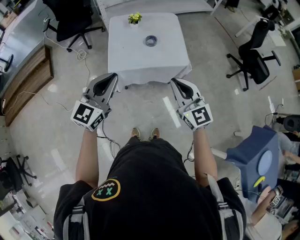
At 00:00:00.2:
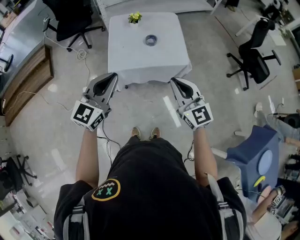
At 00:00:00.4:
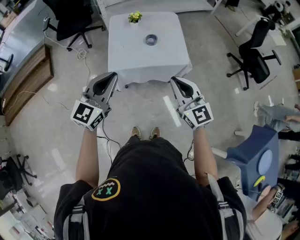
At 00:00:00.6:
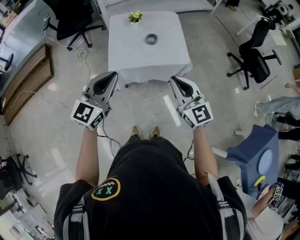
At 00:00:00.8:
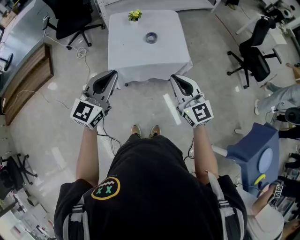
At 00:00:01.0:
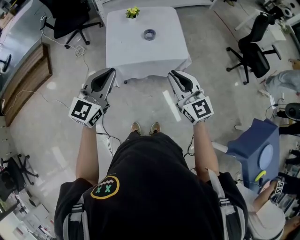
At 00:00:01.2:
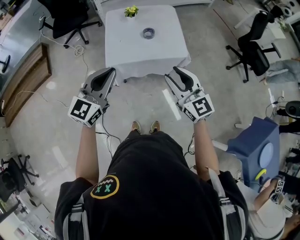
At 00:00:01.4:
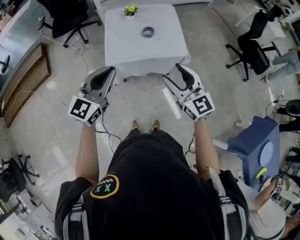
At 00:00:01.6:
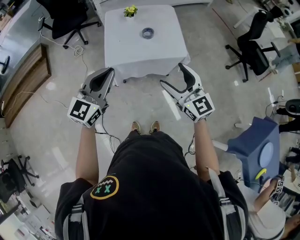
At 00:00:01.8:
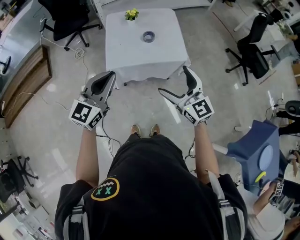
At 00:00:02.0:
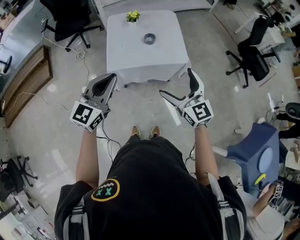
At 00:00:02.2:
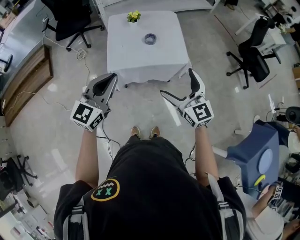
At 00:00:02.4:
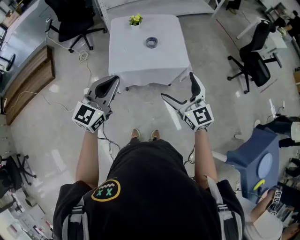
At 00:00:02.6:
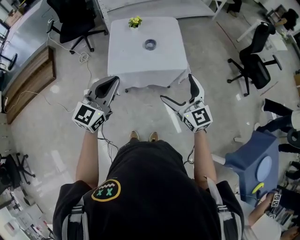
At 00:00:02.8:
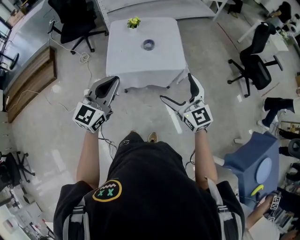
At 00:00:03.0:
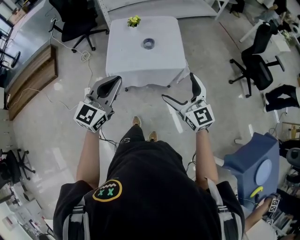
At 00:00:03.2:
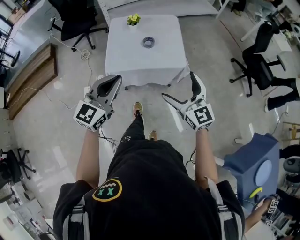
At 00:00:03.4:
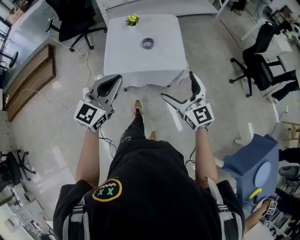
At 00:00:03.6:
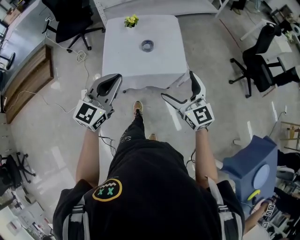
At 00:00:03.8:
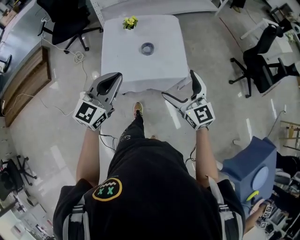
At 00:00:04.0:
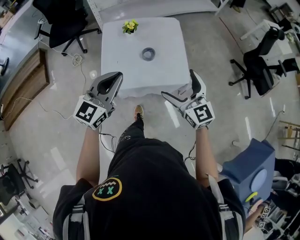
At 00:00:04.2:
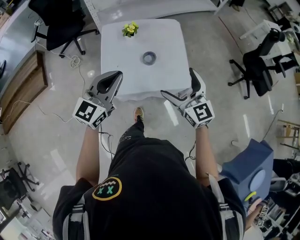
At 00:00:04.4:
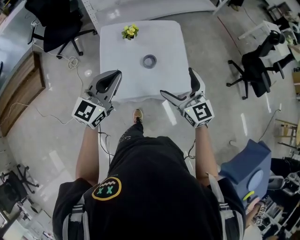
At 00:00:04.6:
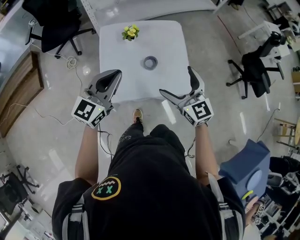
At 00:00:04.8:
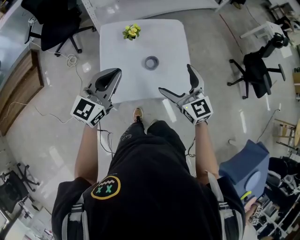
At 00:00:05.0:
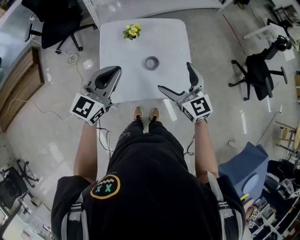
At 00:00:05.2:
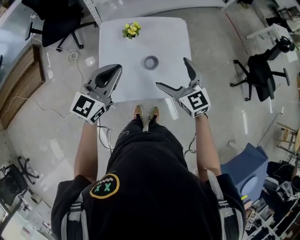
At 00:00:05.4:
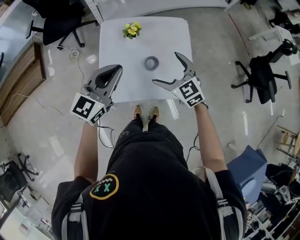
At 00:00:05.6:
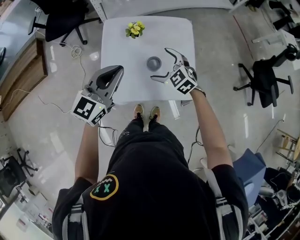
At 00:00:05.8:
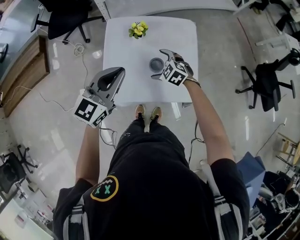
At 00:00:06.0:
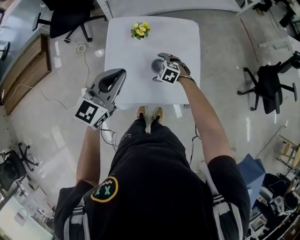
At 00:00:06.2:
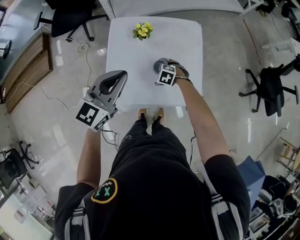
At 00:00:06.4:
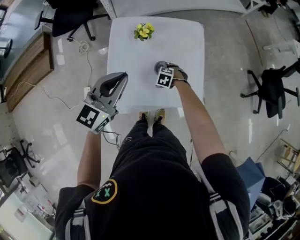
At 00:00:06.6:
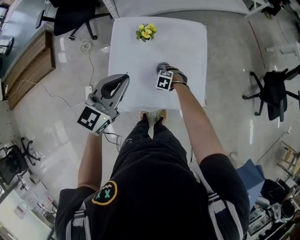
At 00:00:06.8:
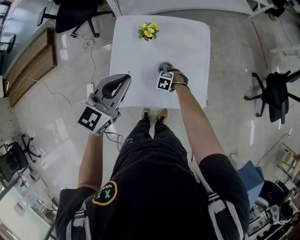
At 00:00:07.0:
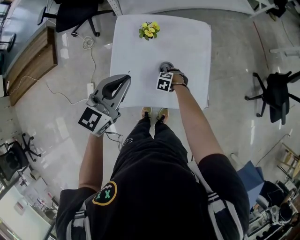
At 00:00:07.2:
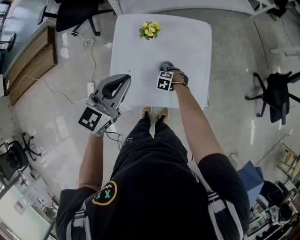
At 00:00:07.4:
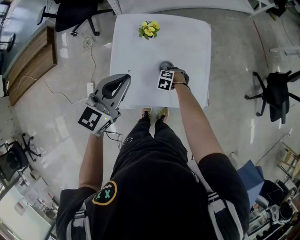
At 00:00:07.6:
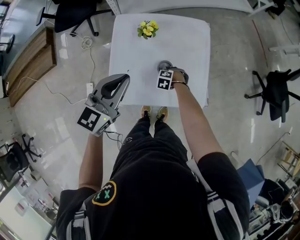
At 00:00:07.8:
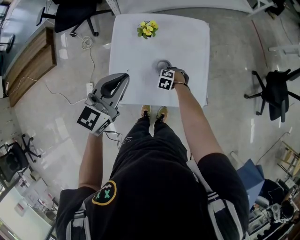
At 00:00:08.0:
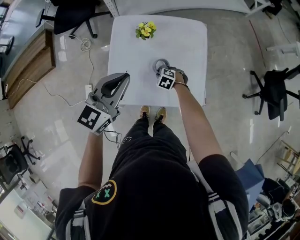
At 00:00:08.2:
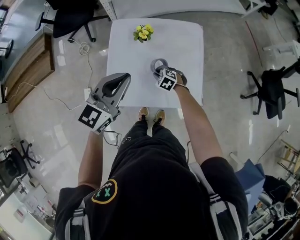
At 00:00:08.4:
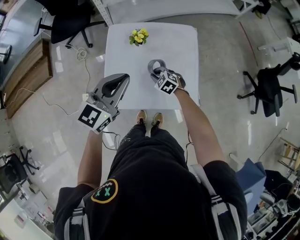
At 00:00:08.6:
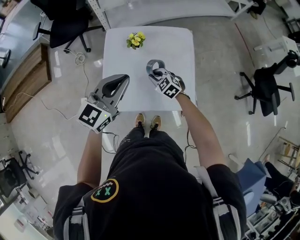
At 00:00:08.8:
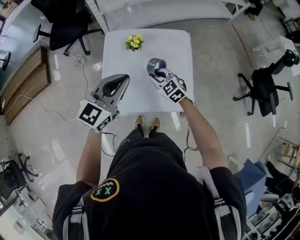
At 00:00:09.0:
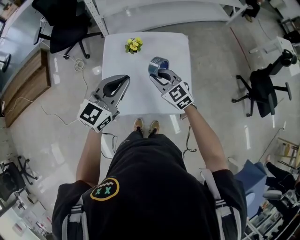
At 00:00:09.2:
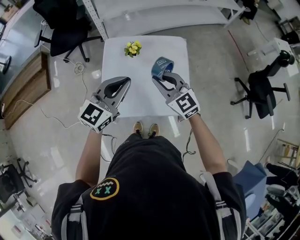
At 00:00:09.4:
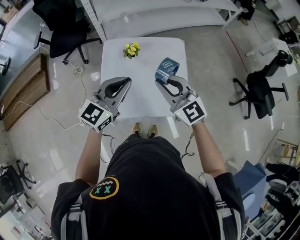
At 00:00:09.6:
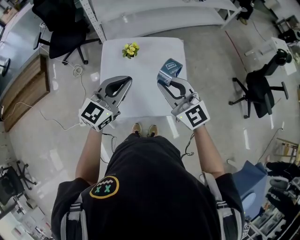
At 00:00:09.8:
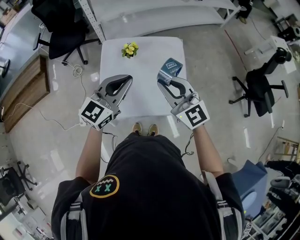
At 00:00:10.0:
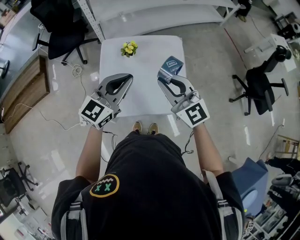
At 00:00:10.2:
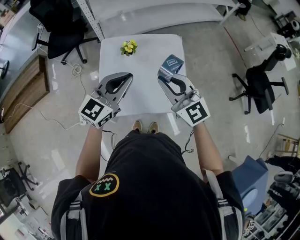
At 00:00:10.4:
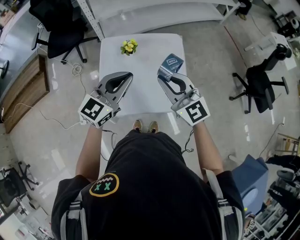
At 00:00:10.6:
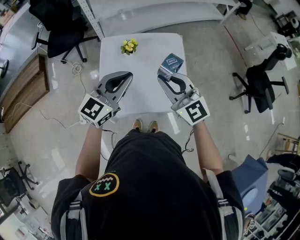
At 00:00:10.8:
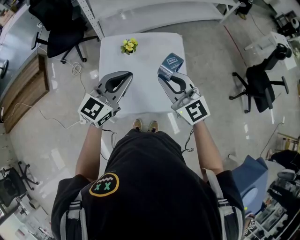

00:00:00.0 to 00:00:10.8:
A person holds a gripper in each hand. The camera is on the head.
00:00:00.0 to 00:00:01.6: The right gripper opens.
00:00:01.6 to 00:00:03.0: The two grippers go roughly 10 cm to the right.
00:00:03.0 to 00:00:04.6: Both grippers travel together forward, about 30 cm.
00:00:04.6 to 00:00:06.2: The right gripper travels downward by some 35 cm, and angles its fingers downward, by roughly 60 degrees, while the left gripper shifts by about 10 cm.
00:00:06.2 to 00:00:07.8: The right gripper shifts some 5 cm downward, and closes its fingers.
00:00:07.8 to 00:00:09.2: The right gripper shifts approximately 40 cm upward, and angles its fingers upward, by some 60 degrees. Meanwhile the left gripper shifts by about 5 cm.
00:00:09.2 to 00:00:10.8: The right gripper heads upward, covering approximately 10 cm.

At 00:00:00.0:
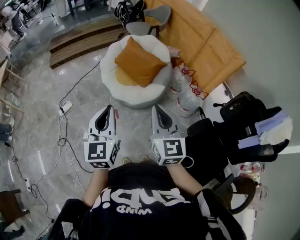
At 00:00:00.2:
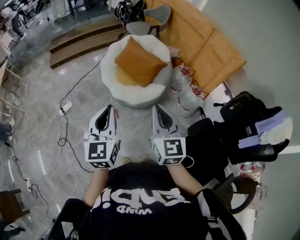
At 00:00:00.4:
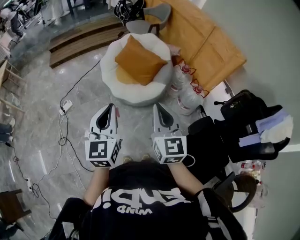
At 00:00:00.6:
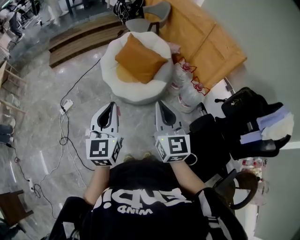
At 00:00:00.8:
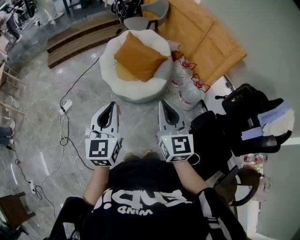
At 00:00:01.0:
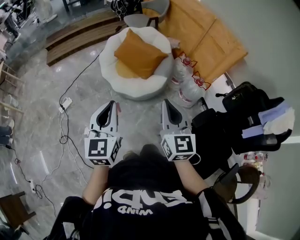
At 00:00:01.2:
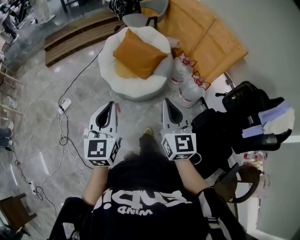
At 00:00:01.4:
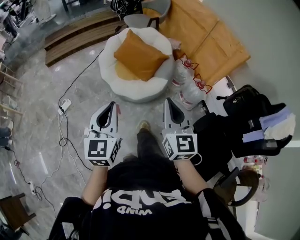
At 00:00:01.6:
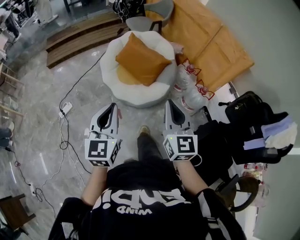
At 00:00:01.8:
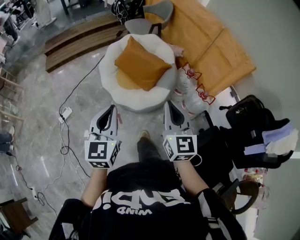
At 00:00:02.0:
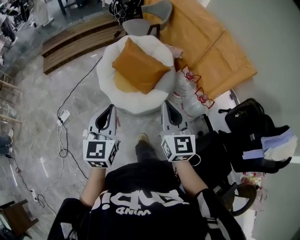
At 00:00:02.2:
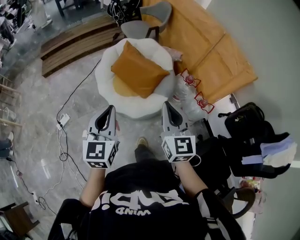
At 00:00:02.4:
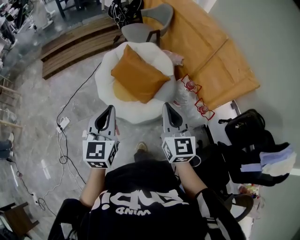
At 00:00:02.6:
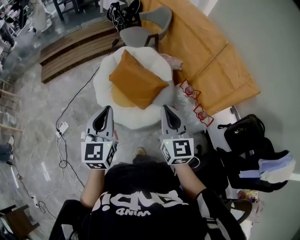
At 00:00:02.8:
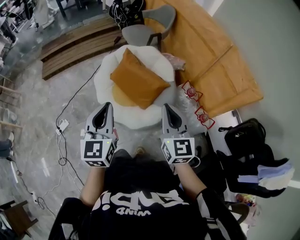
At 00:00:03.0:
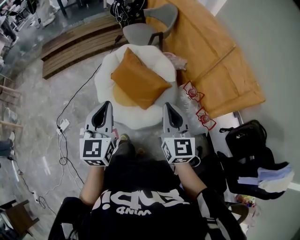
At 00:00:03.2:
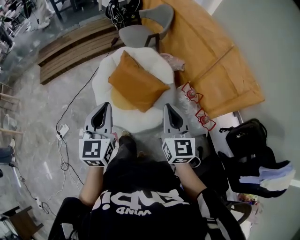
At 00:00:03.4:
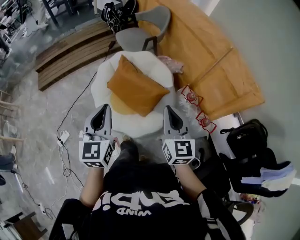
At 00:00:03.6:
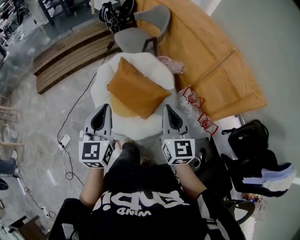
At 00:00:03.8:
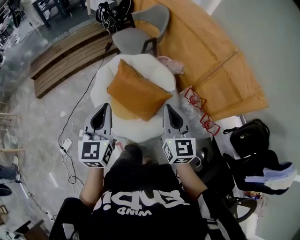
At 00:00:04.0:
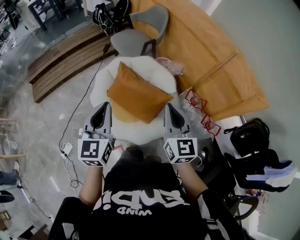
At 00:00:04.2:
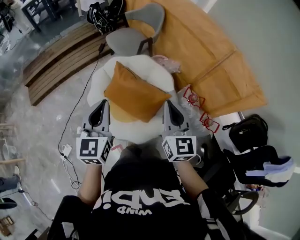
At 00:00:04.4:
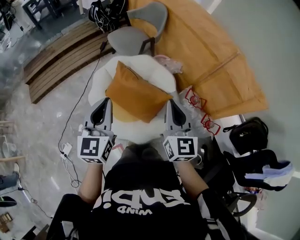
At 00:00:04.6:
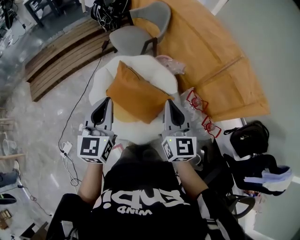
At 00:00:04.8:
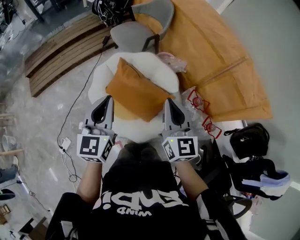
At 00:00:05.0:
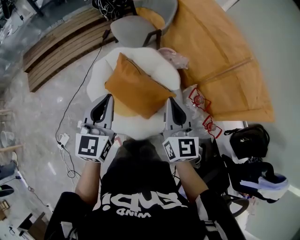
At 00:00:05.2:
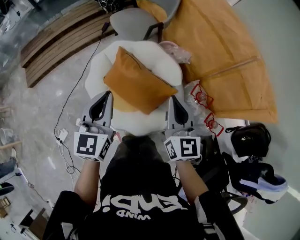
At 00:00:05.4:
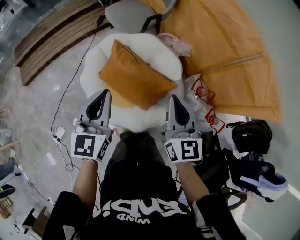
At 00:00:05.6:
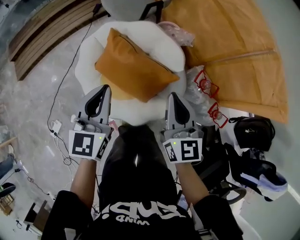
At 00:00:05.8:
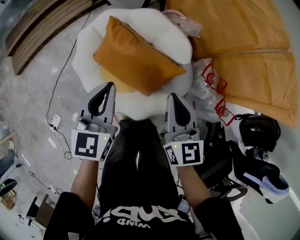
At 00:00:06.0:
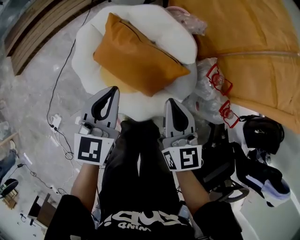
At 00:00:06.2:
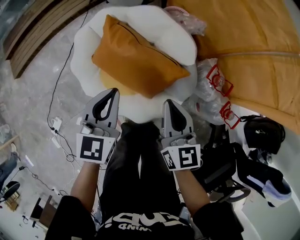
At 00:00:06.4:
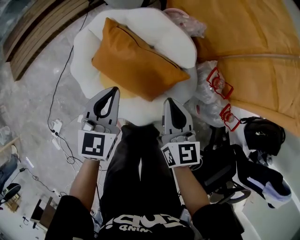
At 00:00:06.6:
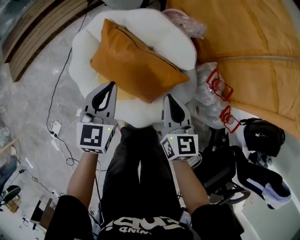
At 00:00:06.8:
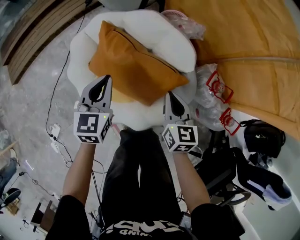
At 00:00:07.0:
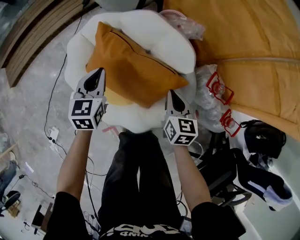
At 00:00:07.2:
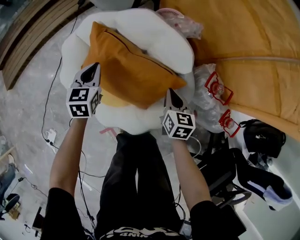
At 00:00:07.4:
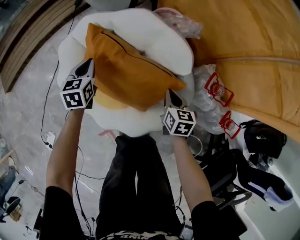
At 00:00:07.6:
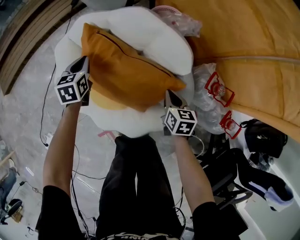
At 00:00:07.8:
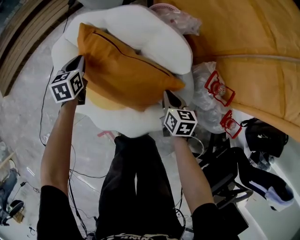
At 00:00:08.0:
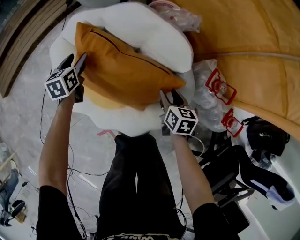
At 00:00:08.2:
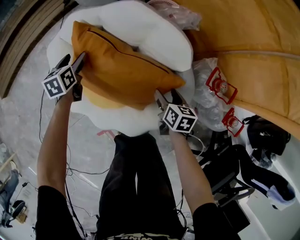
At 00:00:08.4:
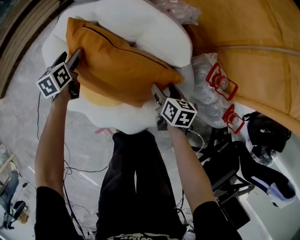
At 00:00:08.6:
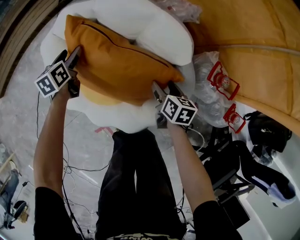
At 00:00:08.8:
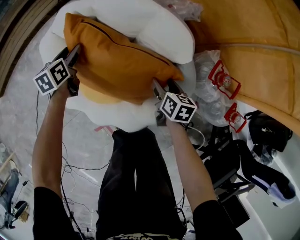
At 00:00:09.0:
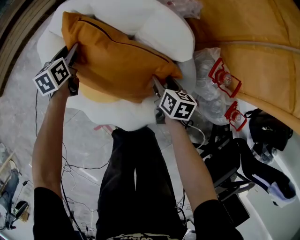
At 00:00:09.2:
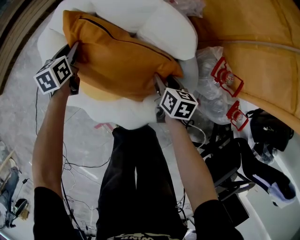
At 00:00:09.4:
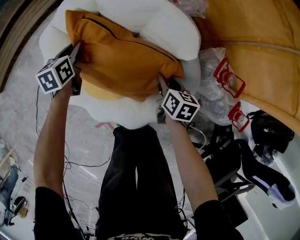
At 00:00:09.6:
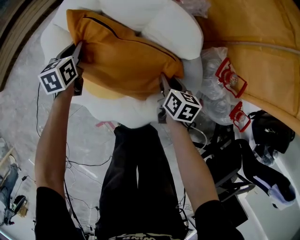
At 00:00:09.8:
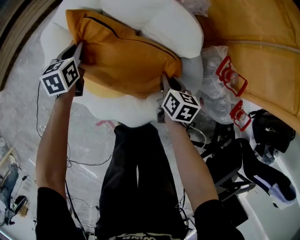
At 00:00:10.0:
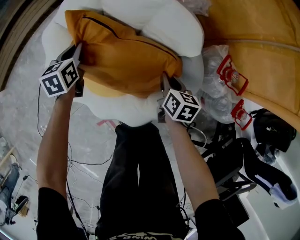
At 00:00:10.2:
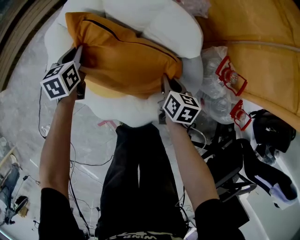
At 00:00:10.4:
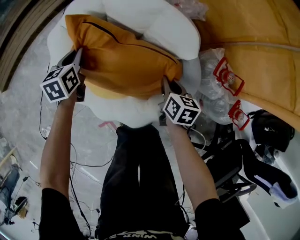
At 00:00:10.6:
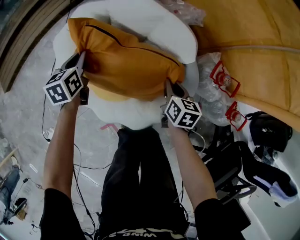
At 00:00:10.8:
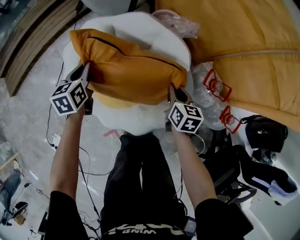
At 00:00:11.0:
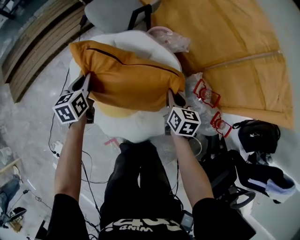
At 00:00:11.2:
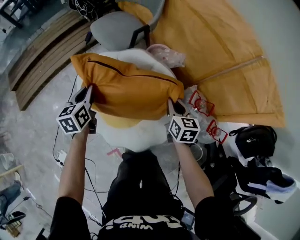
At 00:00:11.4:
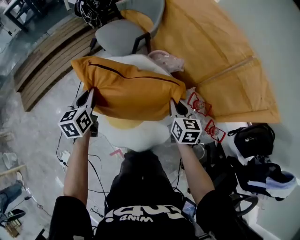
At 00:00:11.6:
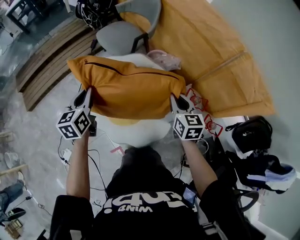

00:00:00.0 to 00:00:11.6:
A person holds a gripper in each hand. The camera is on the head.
00:00:00.0 to 00:00:01.4: The left gripper shifts by roughly 5 cm.
00:00:01.4 to 00:00:02.8: The two grippers go some 30 cm forward.
00:00:02.8 to 00:00:04.4: The two grippers go about 25 cm forward.
00:00:04.4 to 00:00:05.8: The left gripper shifts some 25 cm downward and forward, while the right gripper shifts some 20 cm downward.
00:00:05.8 to 00:00:07.2: The left gripper shifts about 30 cm downward and forward; the right gripper shifts approximately 30 cm downward, and changes its angle by approximately 30 degrees.
00:00:07.2 to 00:00:08.8: The left gripper goes about 15 cm downward and forward, changes its angle by about 20 degrees, and opens. The right gripper is displaced downward by roughly 10 cm, turns by some 20 degrees, and opens its fingers.
00:00:08.8 to 00:00:10.2: The right gripper closes its fingers. The left gripper closes.
00:00:10.2 to 00:00:11.6: The grippers both shift upward by some 40 cm. The right gripper swivels approximately 30 degrees.

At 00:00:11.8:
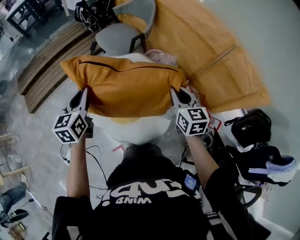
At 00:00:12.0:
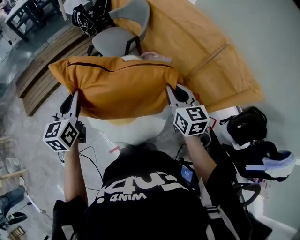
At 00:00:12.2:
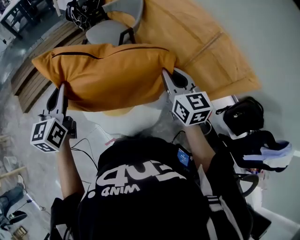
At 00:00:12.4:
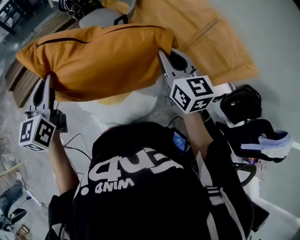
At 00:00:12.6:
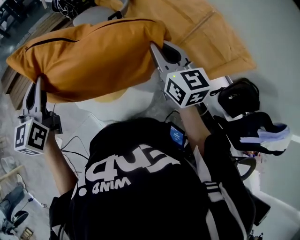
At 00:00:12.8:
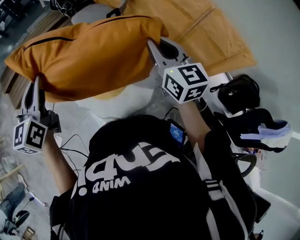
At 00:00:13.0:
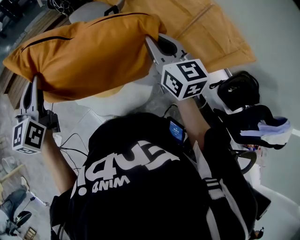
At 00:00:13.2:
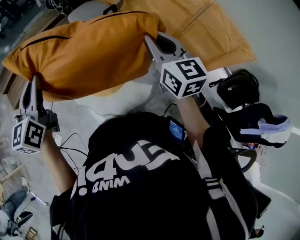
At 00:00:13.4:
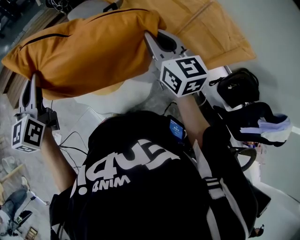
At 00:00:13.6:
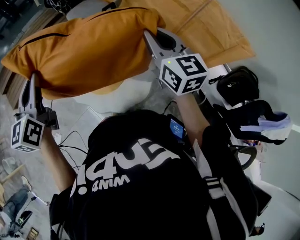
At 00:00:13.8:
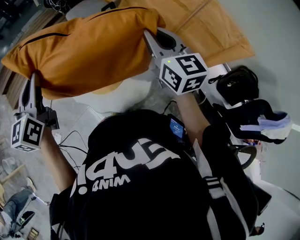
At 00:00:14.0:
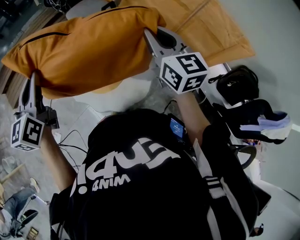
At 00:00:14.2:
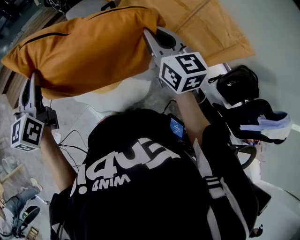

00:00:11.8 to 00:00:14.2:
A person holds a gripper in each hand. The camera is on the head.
00:00:11.8 to 00:00:13.0: The right gripper is displaced upward by some 15 cm. The left gripper goes roughly 15 cm upward and backward.
00:00:13.0 to 00:00:14.2: The grippers move only a little.
